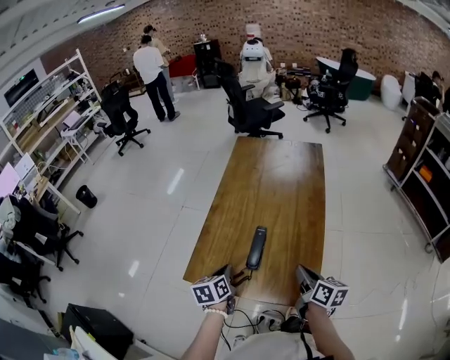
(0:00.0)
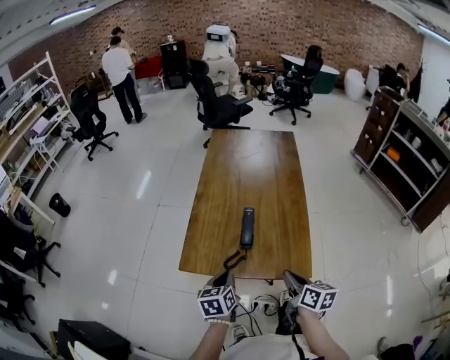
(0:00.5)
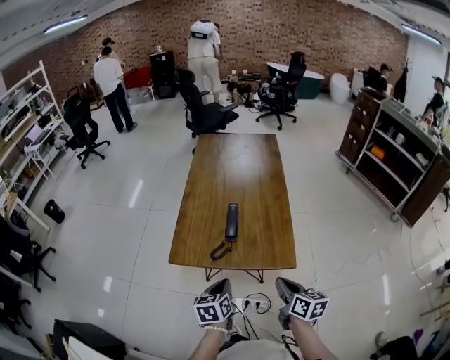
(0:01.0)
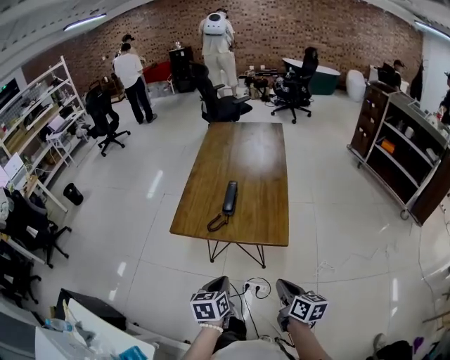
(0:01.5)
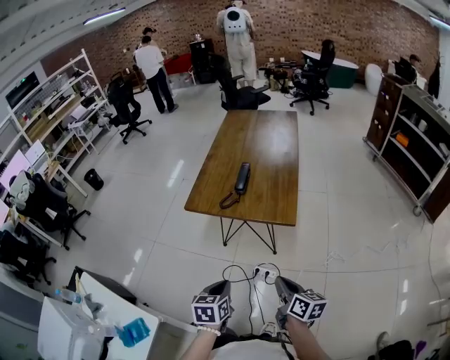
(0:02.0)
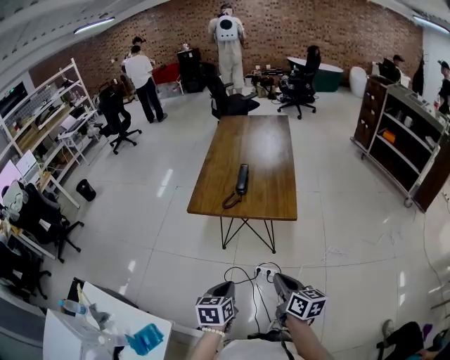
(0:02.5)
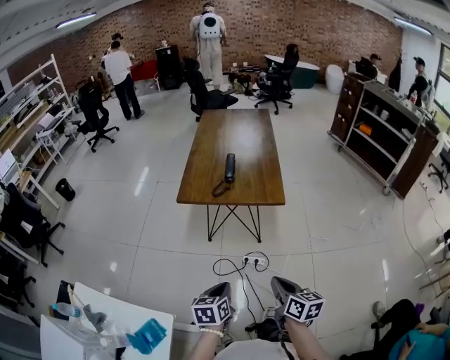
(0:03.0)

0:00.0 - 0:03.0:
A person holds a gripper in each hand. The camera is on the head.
0:00.0 - 0:01.5: The grippers both shift backward by some 30 cm.
0:01.5 - 0:03.0: The right gripper shifts about 20 cm backward and to the left; the left gripper moves backward, some 20 cm.

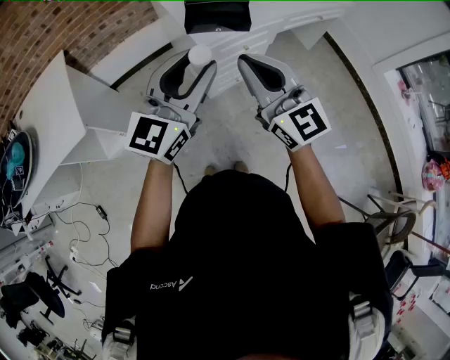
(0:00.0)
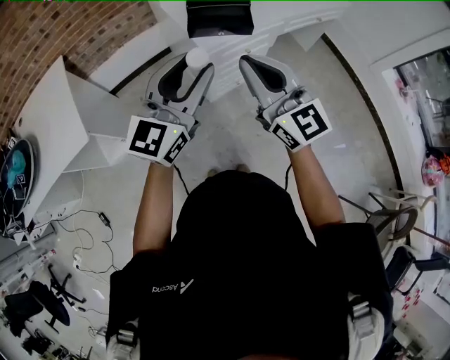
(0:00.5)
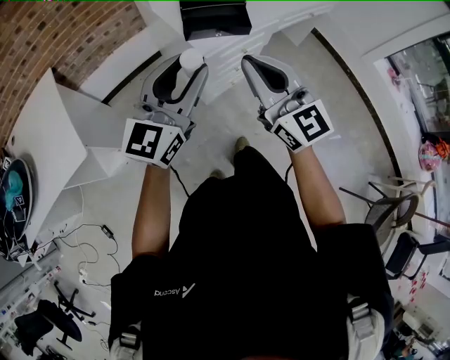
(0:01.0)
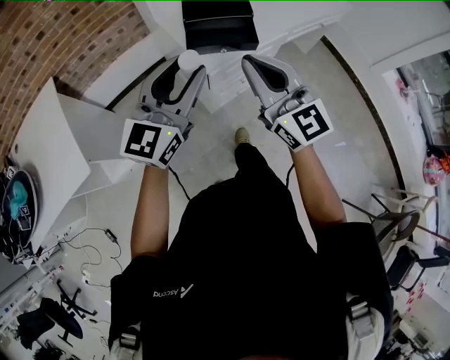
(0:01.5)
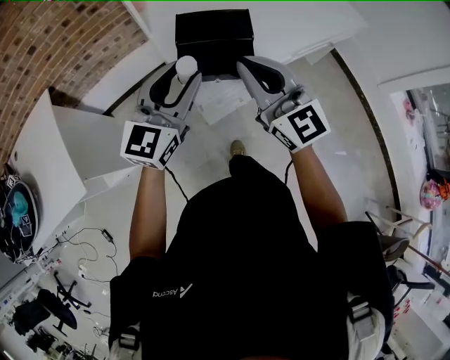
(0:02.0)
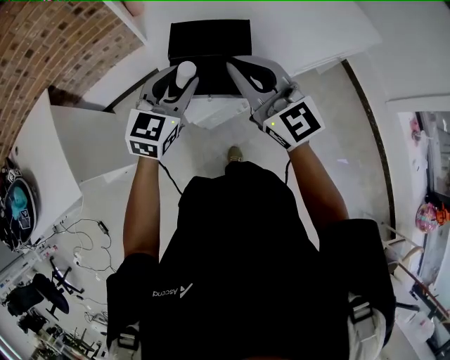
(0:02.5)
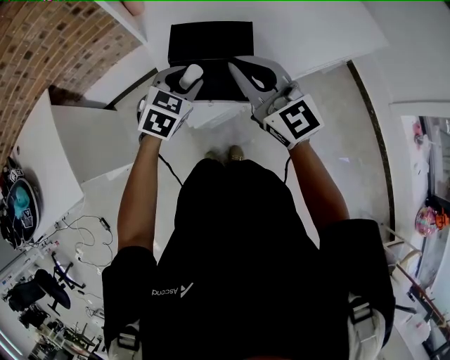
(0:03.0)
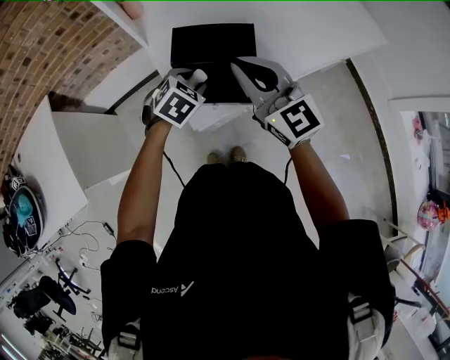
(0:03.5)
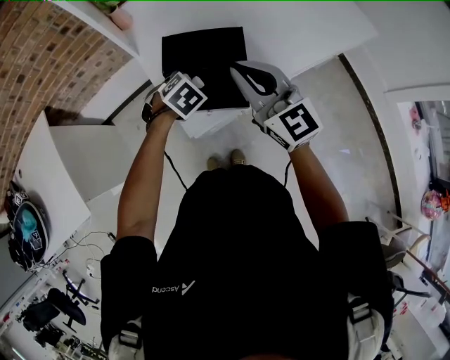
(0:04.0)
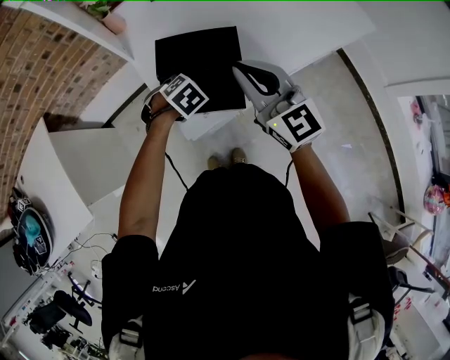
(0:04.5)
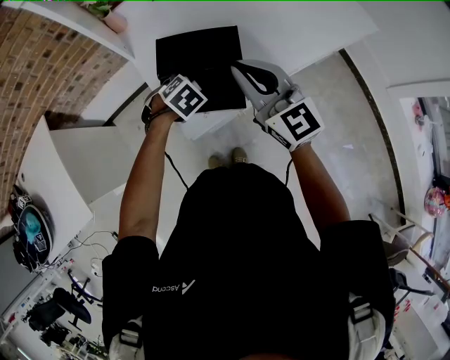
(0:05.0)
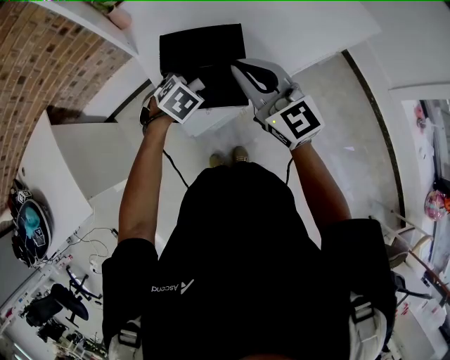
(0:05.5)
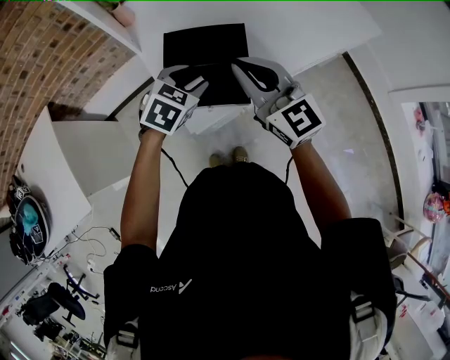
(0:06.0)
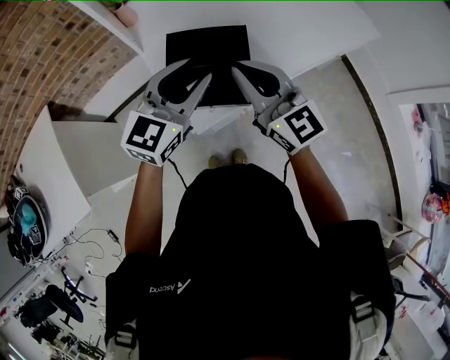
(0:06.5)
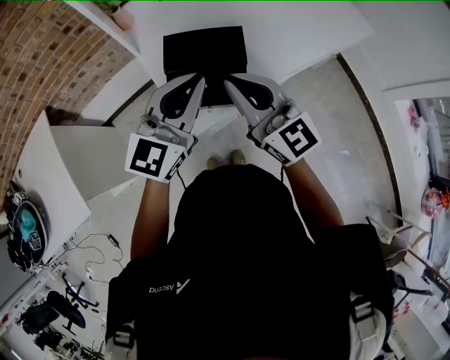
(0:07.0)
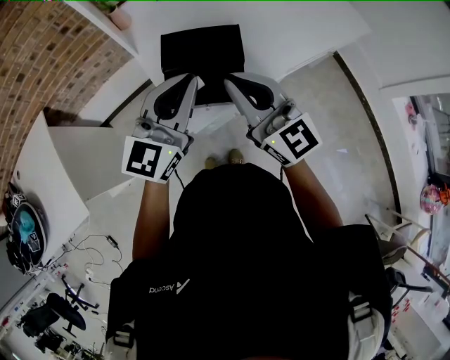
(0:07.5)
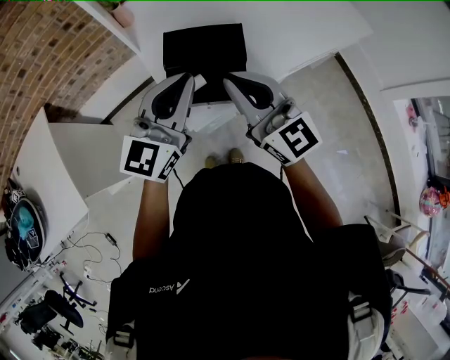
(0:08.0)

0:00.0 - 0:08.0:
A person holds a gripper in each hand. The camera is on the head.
0:00.0 - 0:02.0: The two grippers go approximately 25 cm forward.
0:02.0 - 0:04.0: The right gripper moves forward, some 15 cm, while the left gripper is displaced downward and forward by about 30 cm, and angles its fingers downward, by roughly 70 degrees.
0:04.0 - 0:06.0: The left gripper heads upward, covering some 10 cm, and changes its angle by about 20 degrees.
0:06.0 - 0:08.0: The left gripper goes approximately 20 cm upward and backward, points its fingers roughly 50 degrees further upward, and closes its fingers, while the right gripper heads backward, covering some 5 cm.

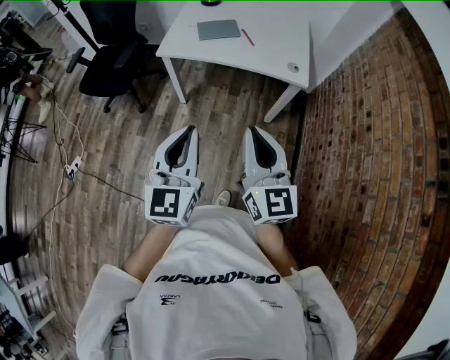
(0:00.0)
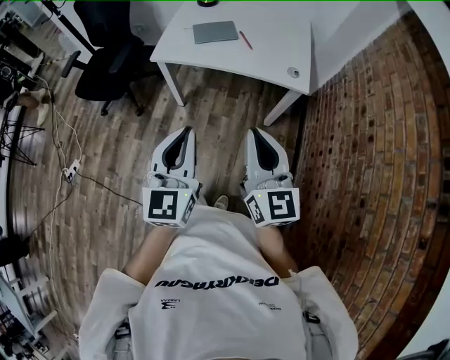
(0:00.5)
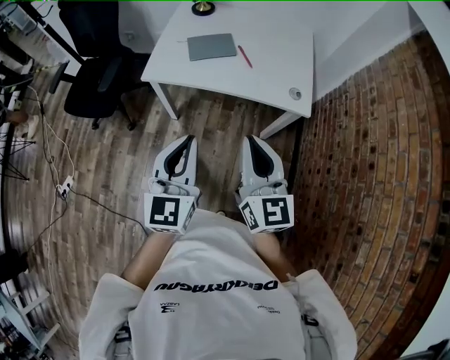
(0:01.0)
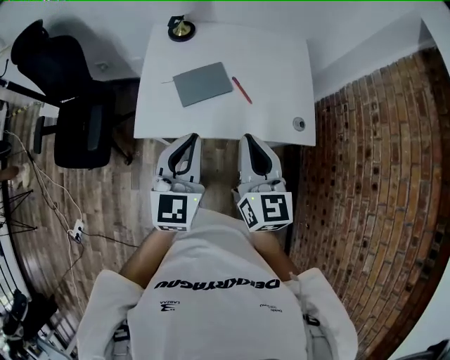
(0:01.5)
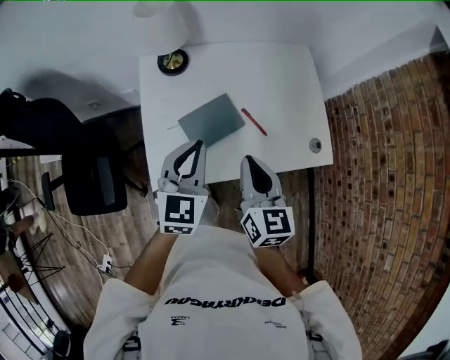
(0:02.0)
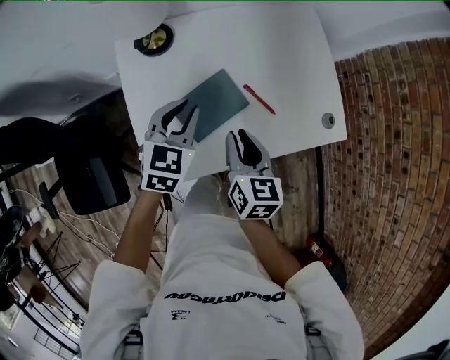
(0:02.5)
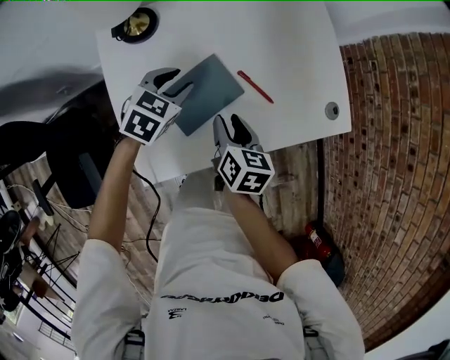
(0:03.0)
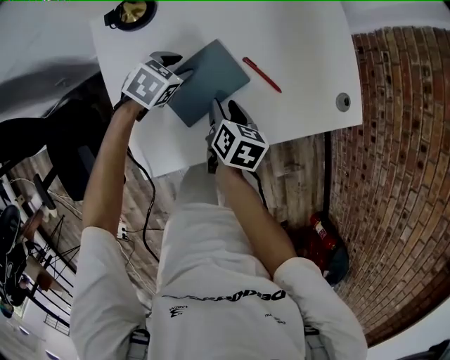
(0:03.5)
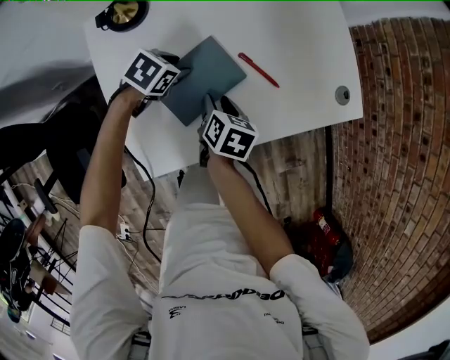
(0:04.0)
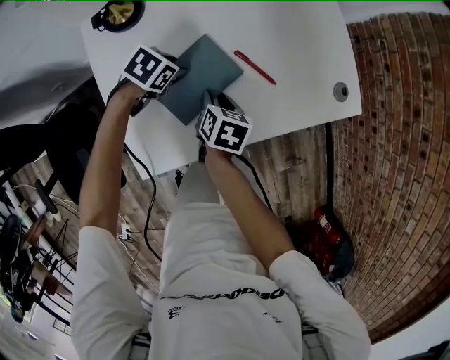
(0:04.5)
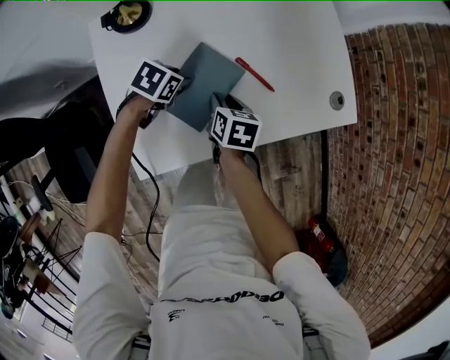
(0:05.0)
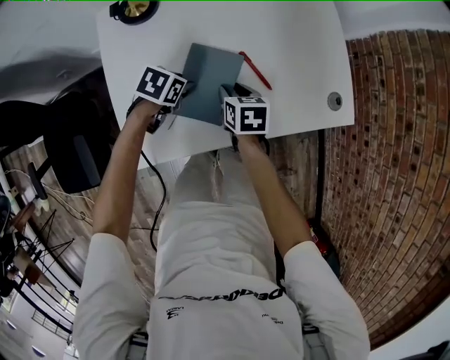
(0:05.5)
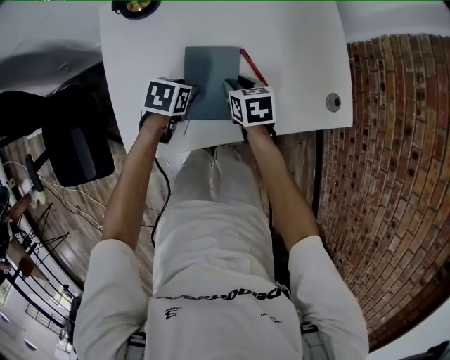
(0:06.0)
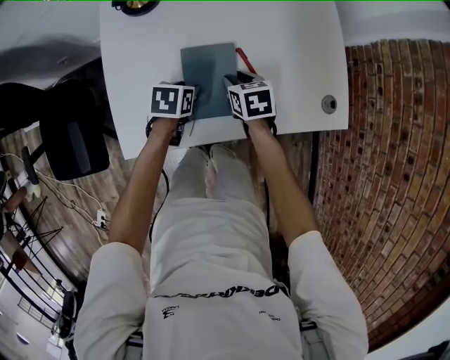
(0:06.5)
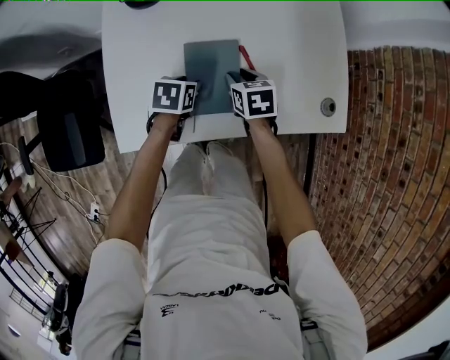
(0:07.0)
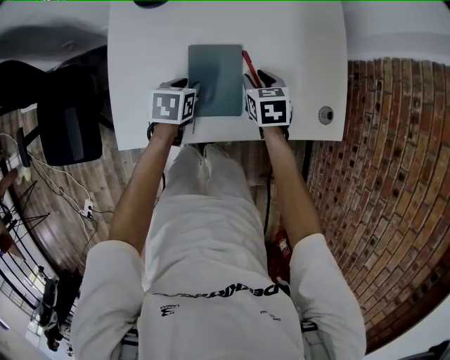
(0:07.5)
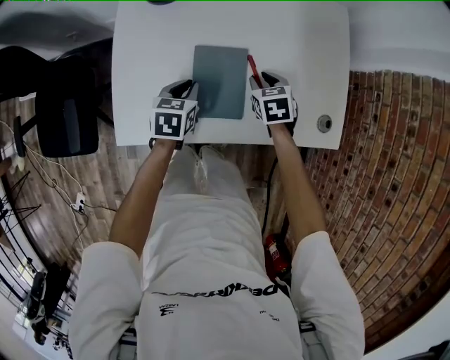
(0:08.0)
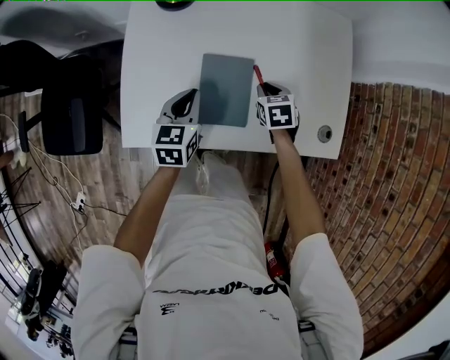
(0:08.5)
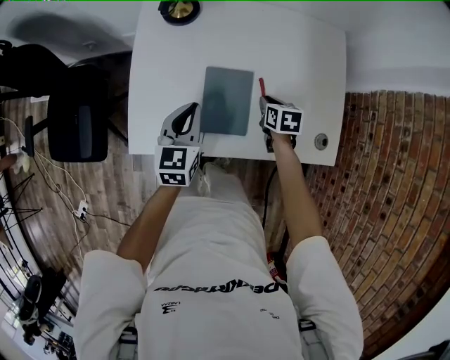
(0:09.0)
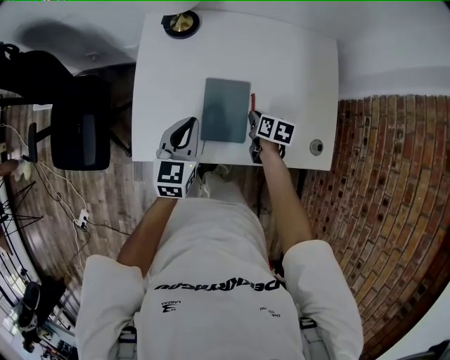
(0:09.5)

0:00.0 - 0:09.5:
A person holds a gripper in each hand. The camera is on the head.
0:00.0 - 0:02.0: Both grippers are carried forward, some 70 cm. The left gripper changes its angle by about 30 degrees, while the right gripper swivels some 30 degrees.
0:02.0 - 0:04.0: Both grippers travel together downward, roughly 30 cm. The right gripper tips its fingers downward by about 30 degrees, and opens up; the left gripper tilts its fingers roughly 40 degrees downward, and opens.
0:04.0 - 0:05.5: The right gripper turns by some 30 degrees. The left gripper shifts by roughly 5 cm.
0:05.5 - 0:07.5: The left gripper changes its angle by approximately 30 degrees. Meanwhile the right gripper heads to the right, covering about 5 cm, and rotates about 20 degrees.
0:07.5 - 0:09.5: The left gripper moves upward, roughly 15 cm, angles its fingers upward, by some 30 degrees, and closes. The right gripper turns by approximately 30 degrees, and closes its fingers.

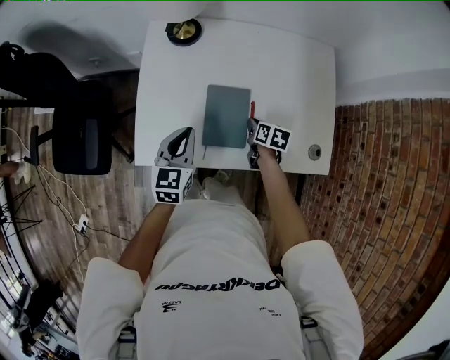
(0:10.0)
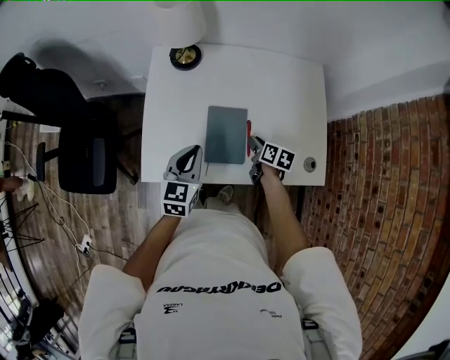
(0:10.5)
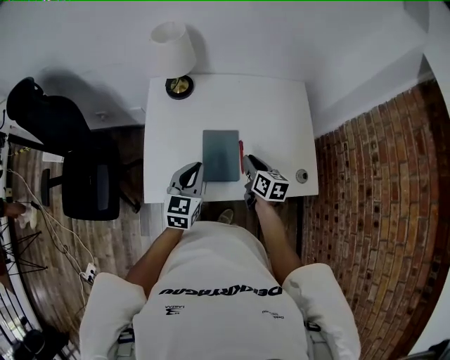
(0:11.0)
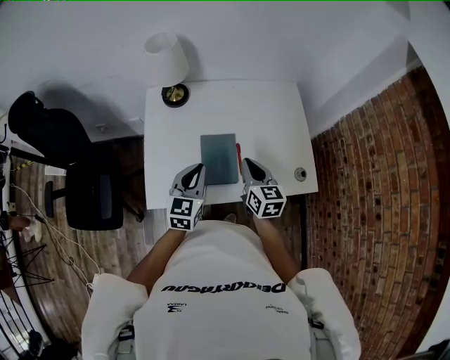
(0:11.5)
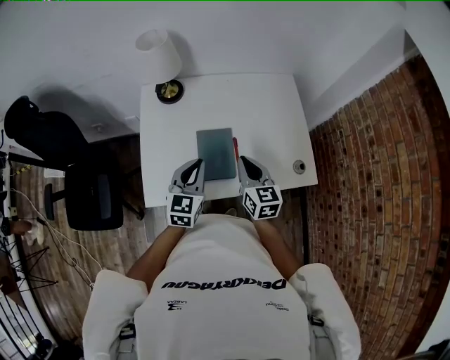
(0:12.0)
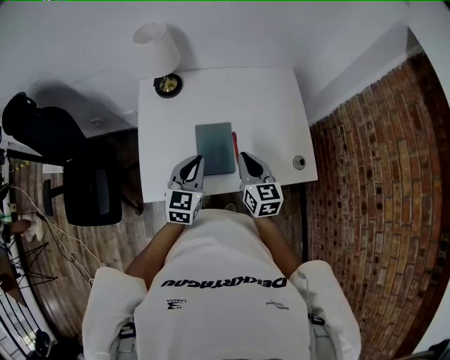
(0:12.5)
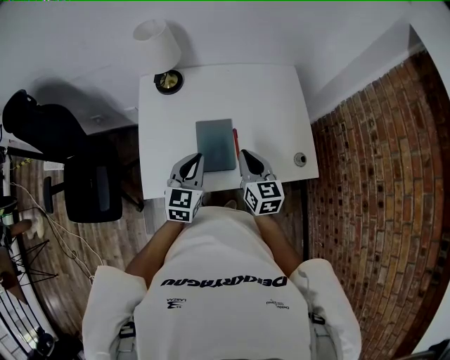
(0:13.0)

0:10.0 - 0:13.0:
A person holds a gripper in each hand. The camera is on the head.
0:10.0 - 0:11.5: The right gripper goes some 25 cm upward, and tilts its fingers roughly 30 degrees upward. Meanwhile the left gripper goes about 10 cm upward.
0:11.5 - 0:13.0: The grippers stay close to where they were, moving slightly.

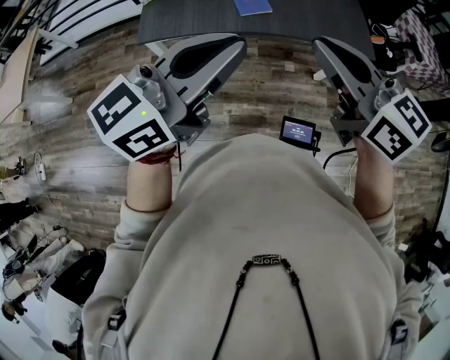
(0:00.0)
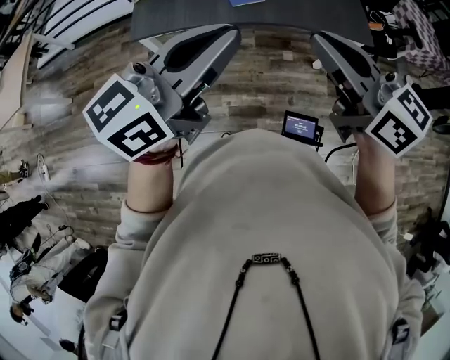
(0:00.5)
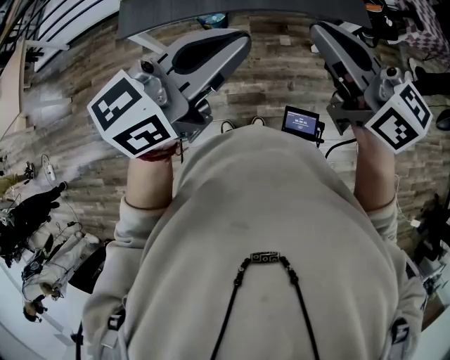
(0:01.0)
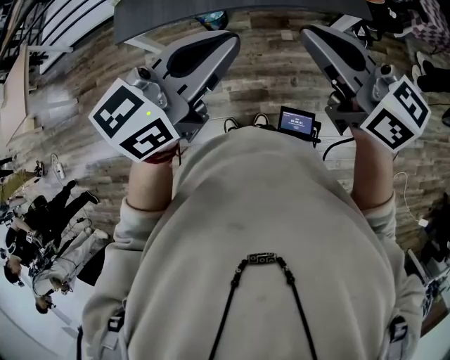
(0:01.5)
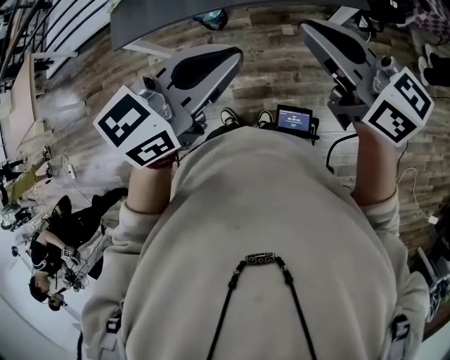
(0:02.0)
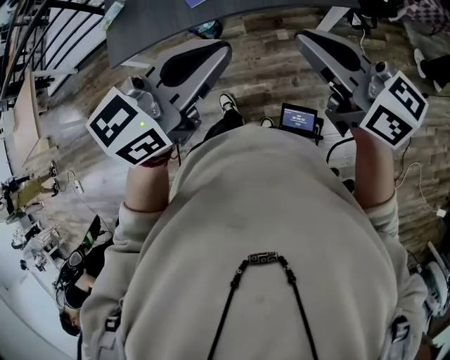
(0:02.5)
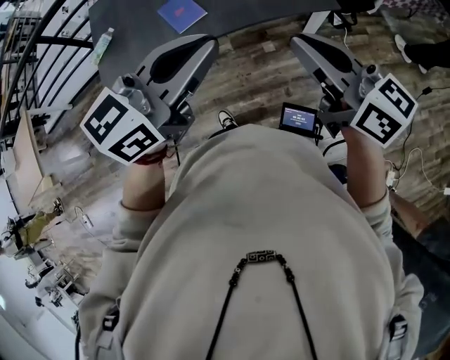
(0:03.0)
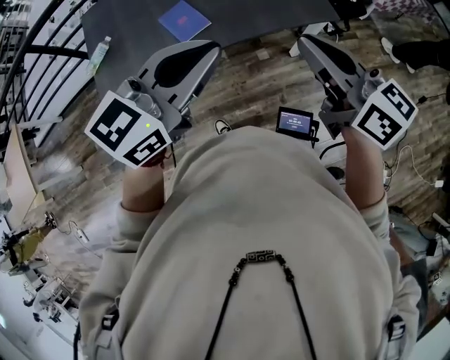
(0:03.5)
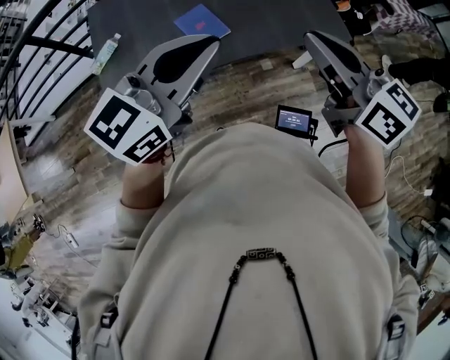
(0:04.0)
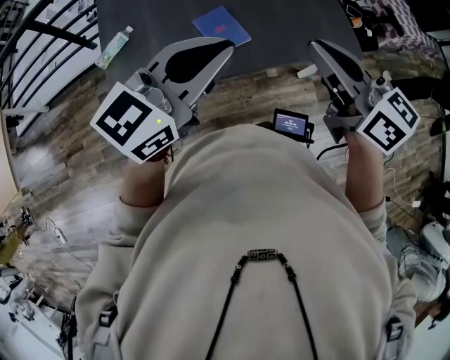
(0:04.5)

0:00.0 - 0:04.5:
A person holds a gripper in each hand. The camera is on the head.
0:00.0 - 0:02.0: The grippers both shift to the right and downward by approximately 15 cm.
0:02.0 - 0:04.5: Both grippers move to the left and forward, about 25 cm.
